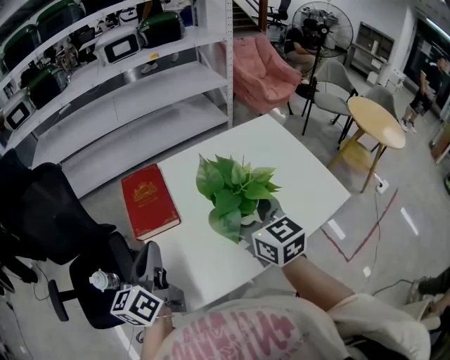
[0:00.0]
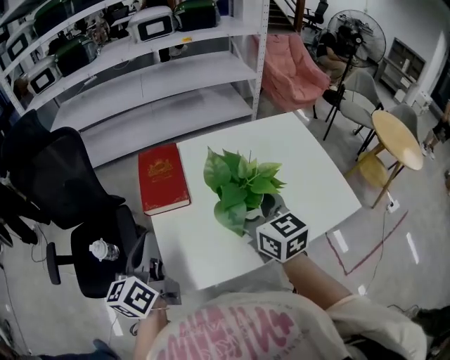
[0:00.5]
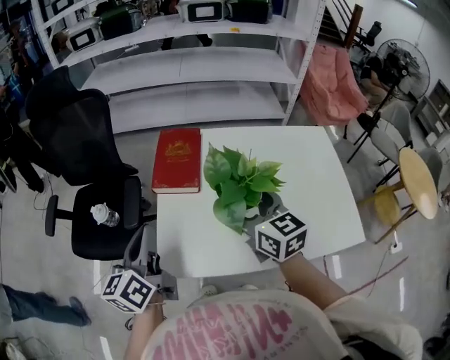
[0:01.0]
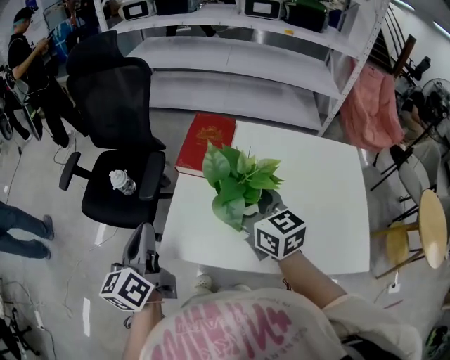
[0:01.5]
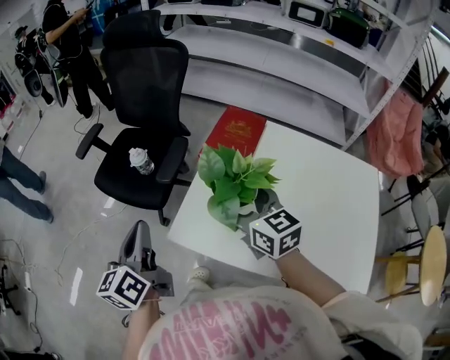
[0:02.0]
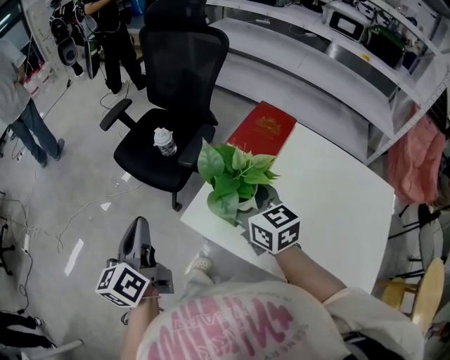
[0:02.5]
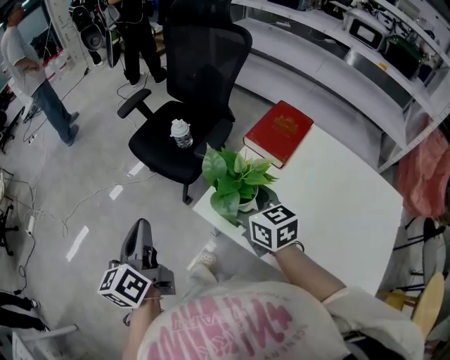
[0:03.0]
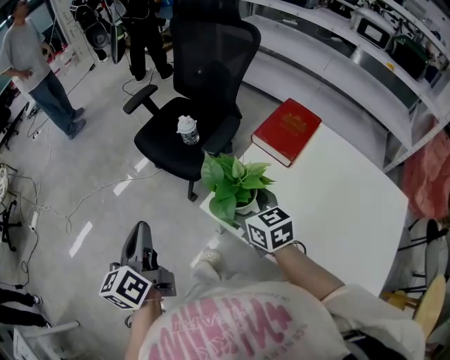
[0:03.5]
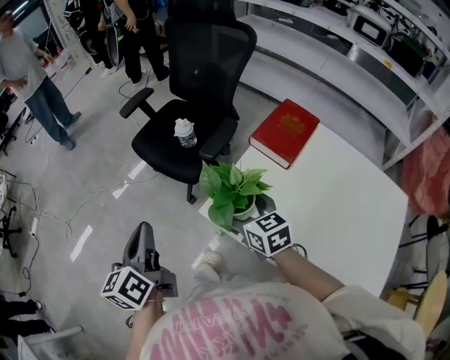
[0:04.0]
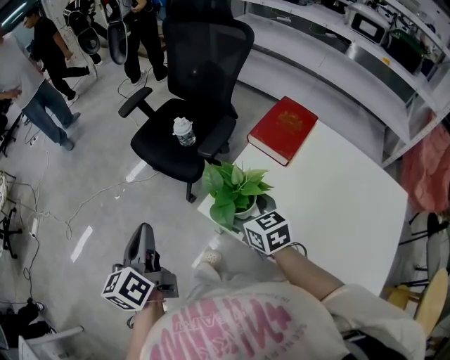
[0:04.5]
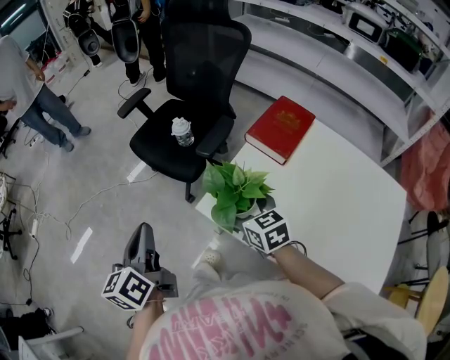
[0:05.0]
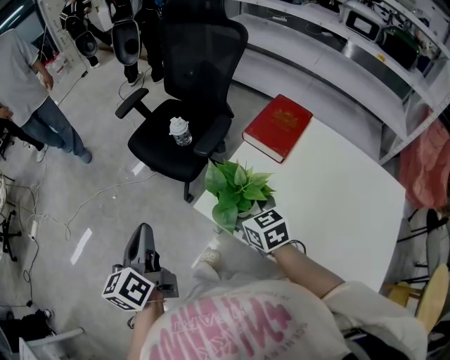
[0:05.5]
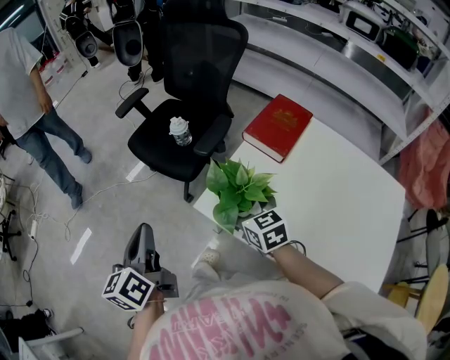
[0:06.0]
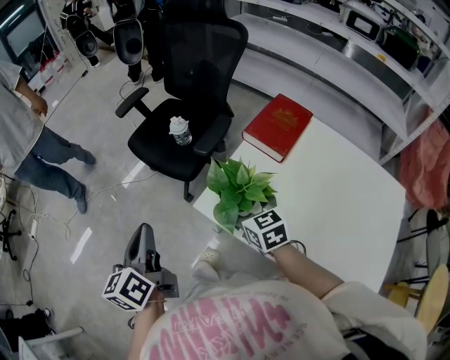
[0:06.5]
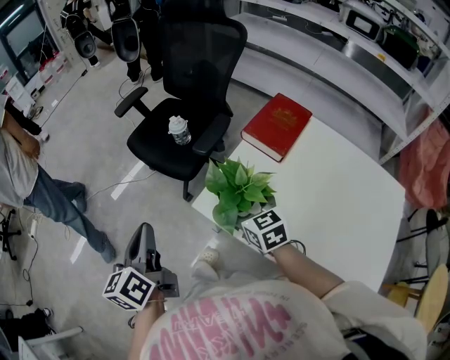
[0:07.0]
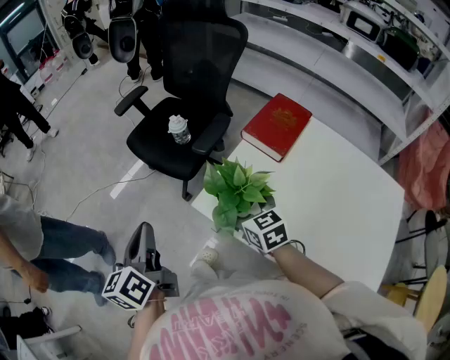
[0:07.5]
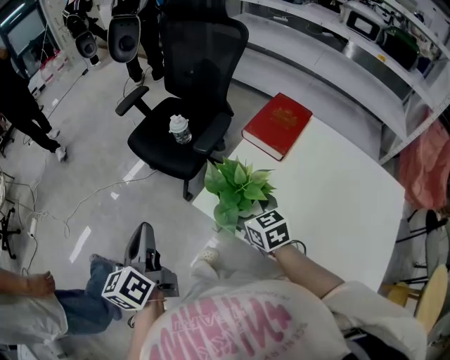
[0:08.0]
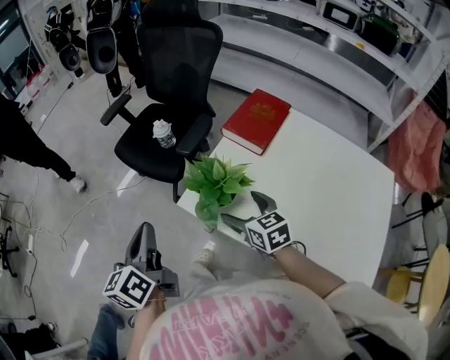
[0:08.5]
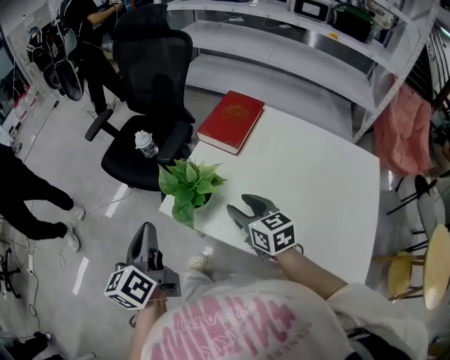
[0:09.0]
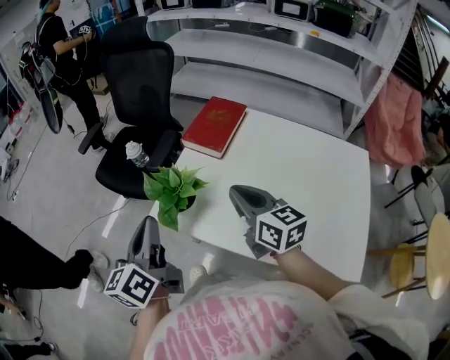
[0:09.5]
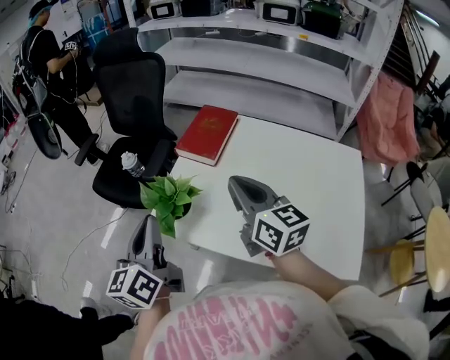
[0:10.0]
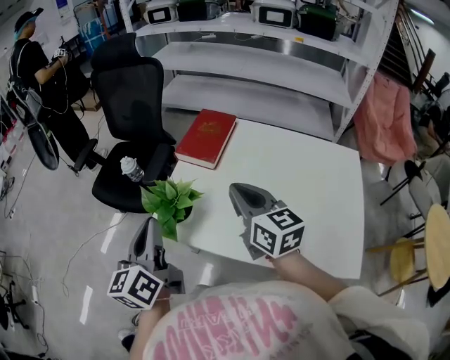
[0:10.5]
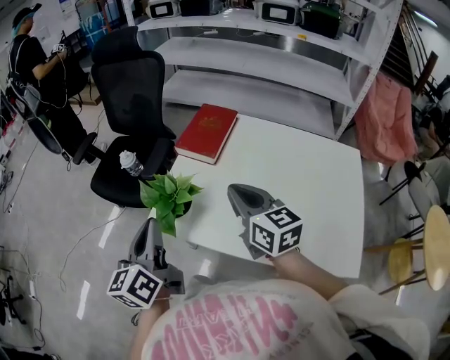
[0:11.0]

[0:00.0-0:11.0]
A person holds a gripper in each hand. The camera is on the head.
0:00.0 to 0:02.0: The left gripper shifts by approximately 20 cm, and changes its angle by about 50 degrees, while the right gripper shifts by some 15 cm, and swivels about 50 degrees.
0:02.0 to 0:03.5: The left gripper shifts roughly 15 cm to the left and backward, while the right gripper goes about 15 cm to the left and downward.
0:03.5 to 0:05.5: The grippers move only a little.
0:05.5 to 0:07.5: Both grippers stay put.
0:07.5 to 0:09.0: The left gripper is displaced to the right by some 10 cm. The right gripper goes roughly 10 cm to the right and backward, and closes its fingers.
0:09.0 to 0:11.0: The right gripper moves upward, about 10 cm, and closes up. Meanwhile the left gripper heads to the right, covering approximately 10 cm.

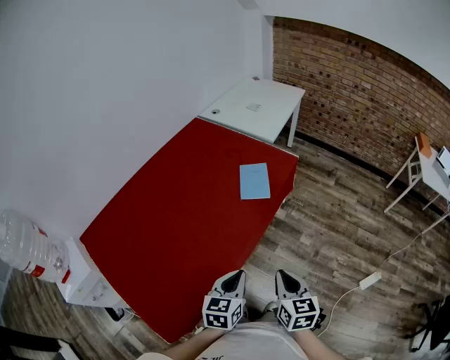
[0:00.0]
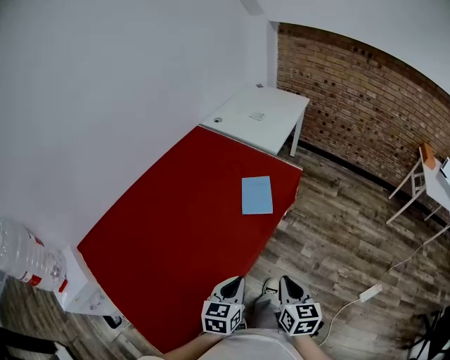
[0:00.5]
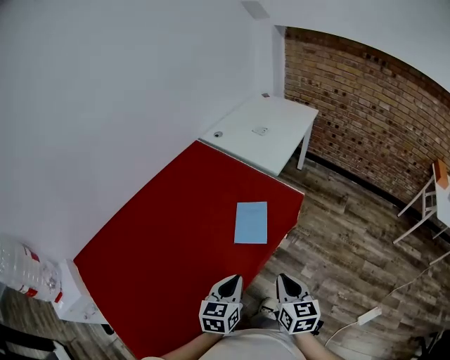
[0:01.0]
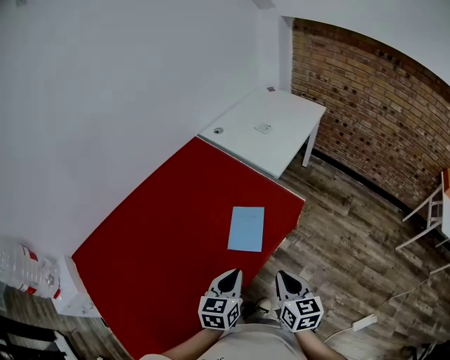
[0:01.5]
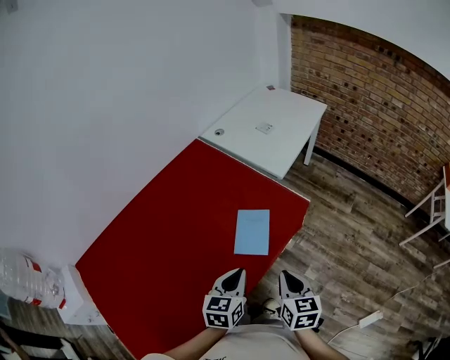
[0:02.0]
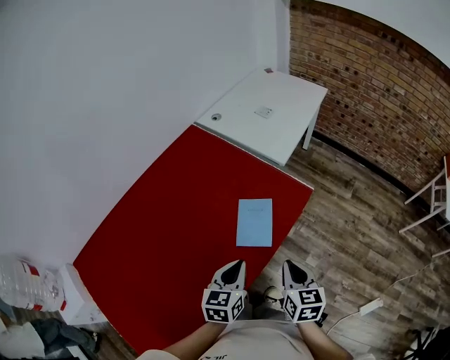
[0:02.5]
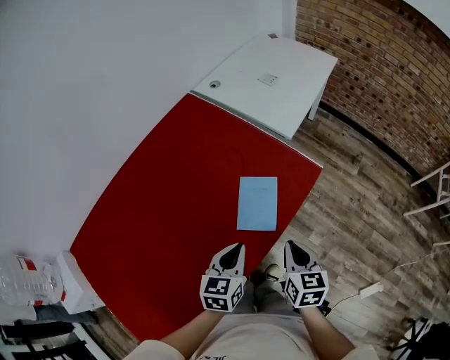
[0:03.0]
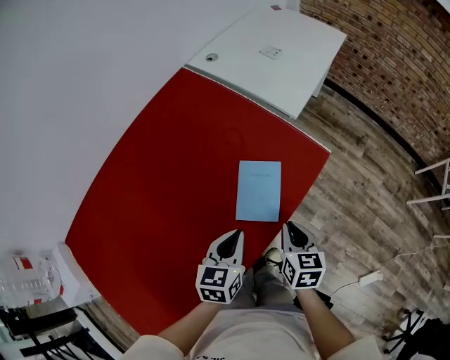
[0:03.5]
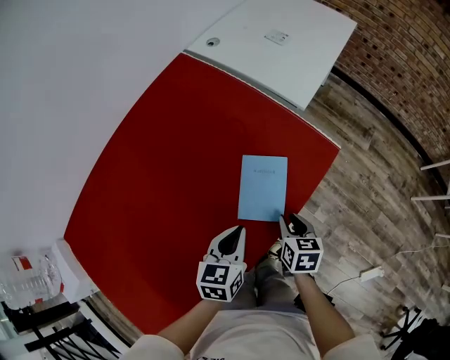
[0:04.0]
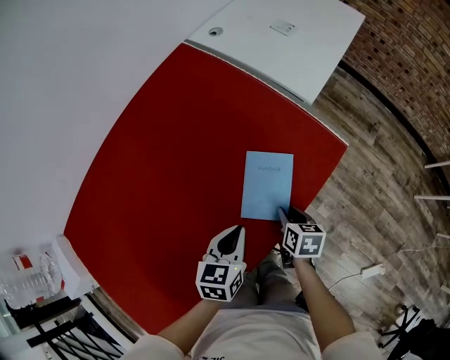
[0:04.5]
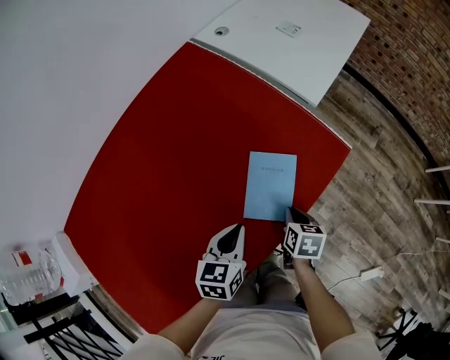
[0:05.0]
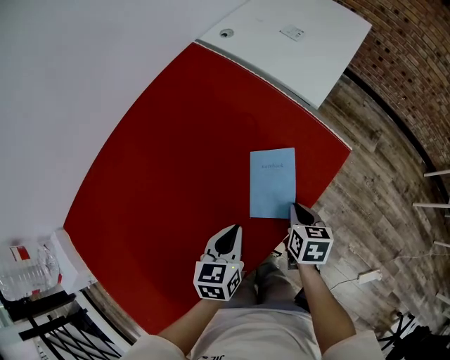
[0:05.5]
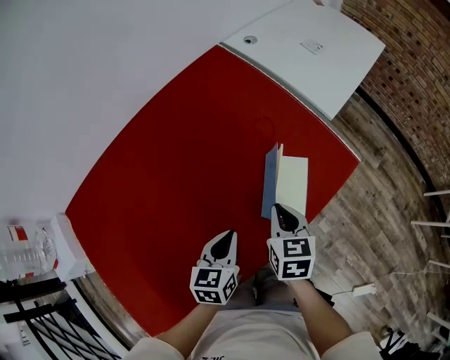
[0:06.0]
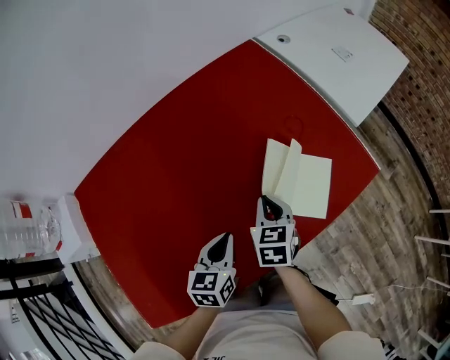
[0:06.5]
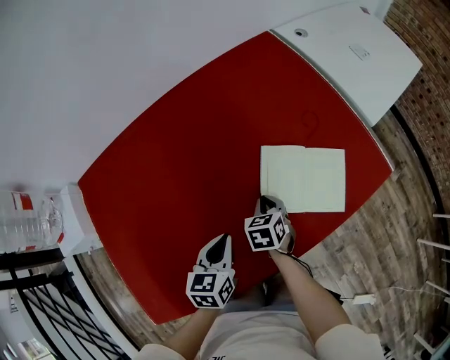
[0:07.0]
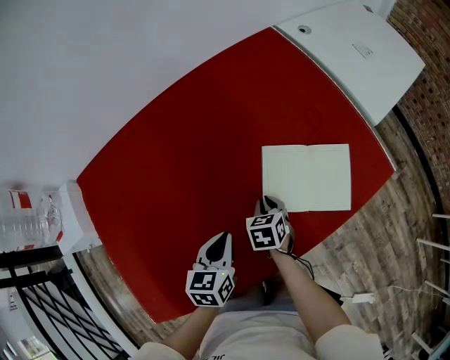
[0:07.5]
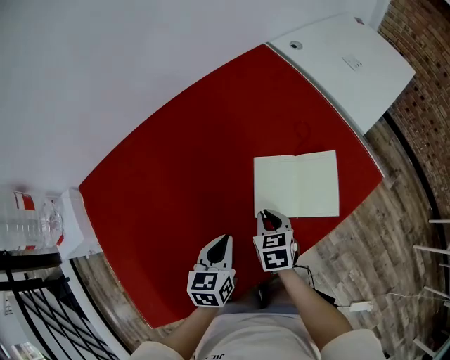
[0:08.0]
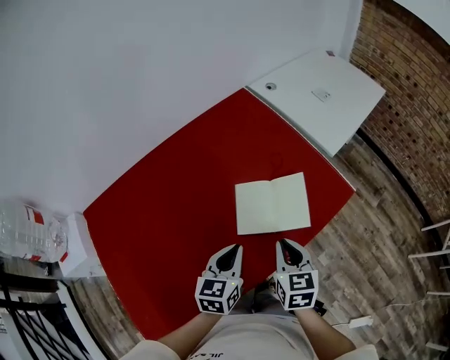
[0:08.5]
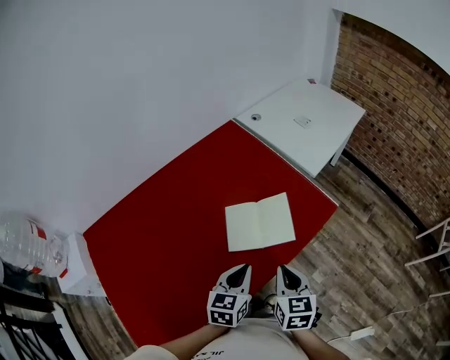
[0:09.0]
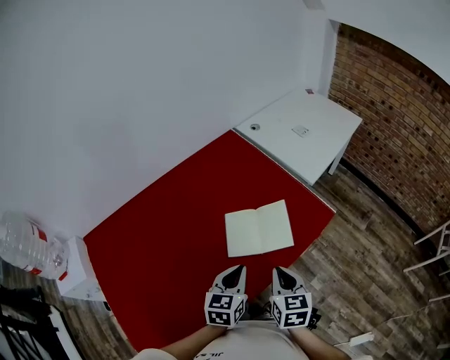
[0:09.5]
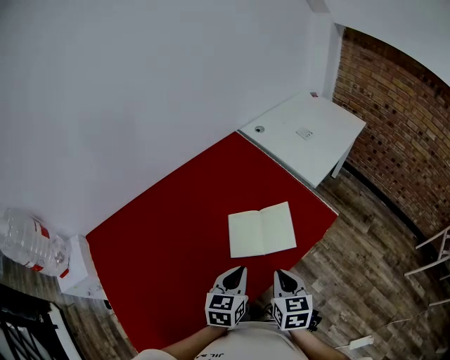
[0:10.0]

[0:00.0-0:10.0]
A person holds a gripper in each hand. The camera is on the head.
0:00.0 to 0:02.0: Both grippers move forward, some 30 cm.
0:02.0 to 0:04.0: The right gripper moves downward and forward, roughly 25 cm, and turns by some 20 degrees. The left gripper travels downward and forward by approximately 15 cm.
0:04.0 to 0:06.0: The left gripper goes about 10 cm to the left, while the right gripper shifts some 15 cm to the left and upward.
0:06.0 to 0:08.0: The right gripper shifts roughly 15 cm to the left and downward, while the left gripper moves to the left, roughly 10 cm.
0:08.0 to 0:10.0: The right gripper moves upward, to the right and backward, about 25 cm, and rotates roughly 20 degrees. The left gripper travels to the right and upward by approximately 20 cm.

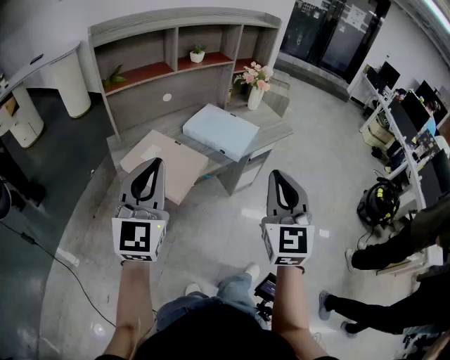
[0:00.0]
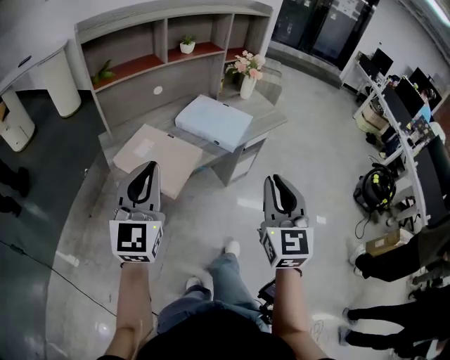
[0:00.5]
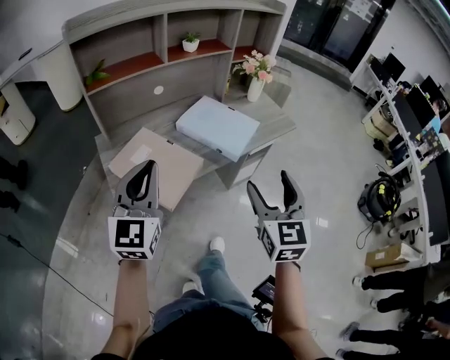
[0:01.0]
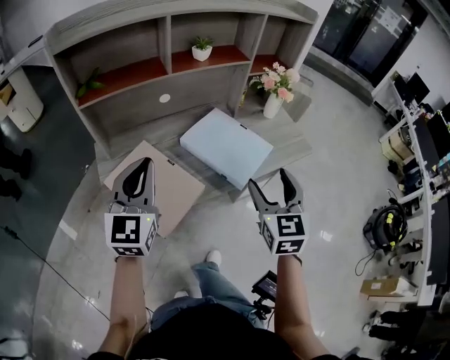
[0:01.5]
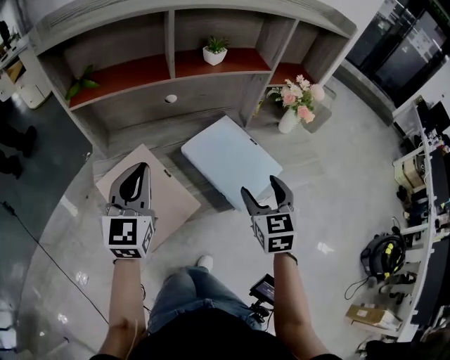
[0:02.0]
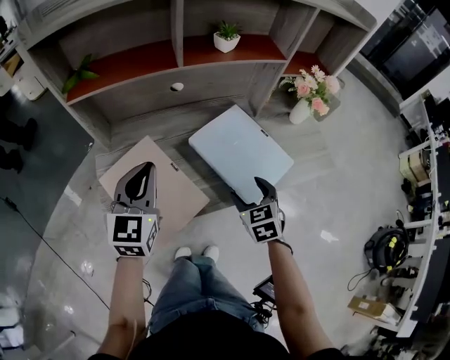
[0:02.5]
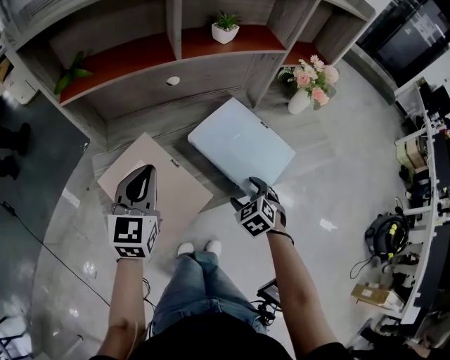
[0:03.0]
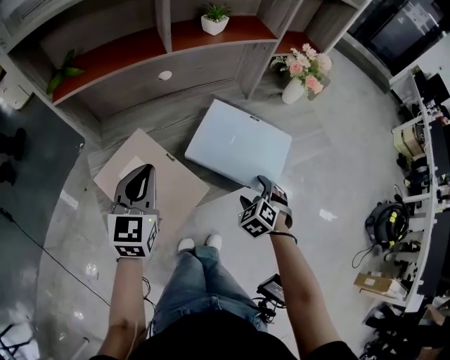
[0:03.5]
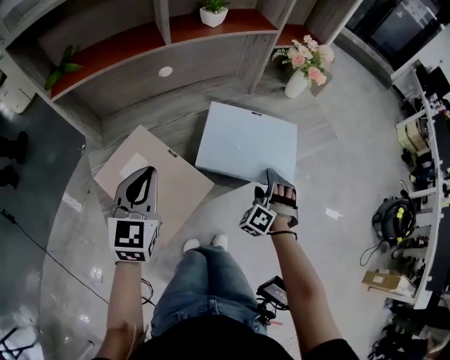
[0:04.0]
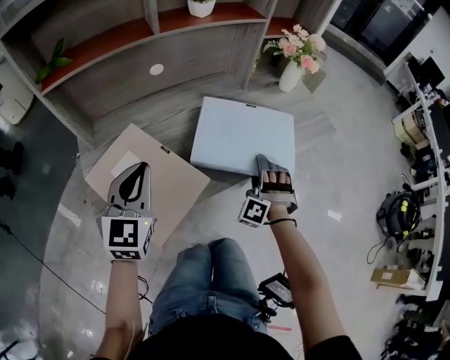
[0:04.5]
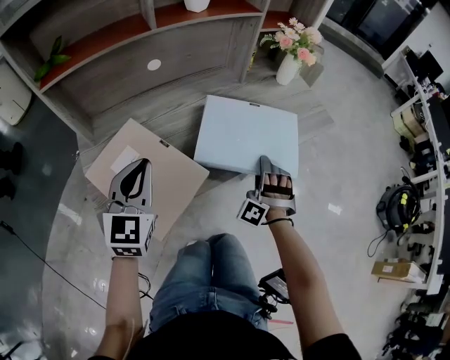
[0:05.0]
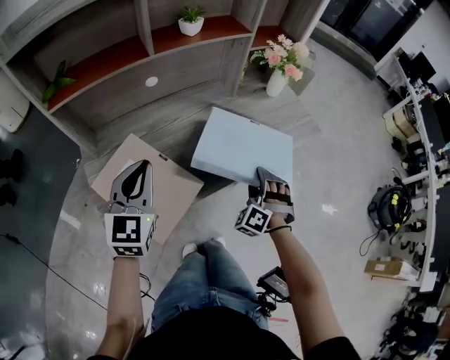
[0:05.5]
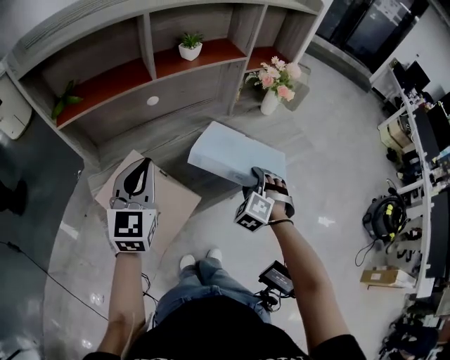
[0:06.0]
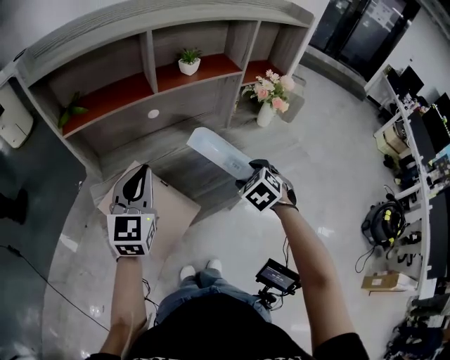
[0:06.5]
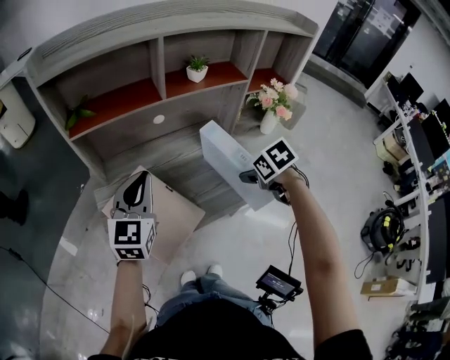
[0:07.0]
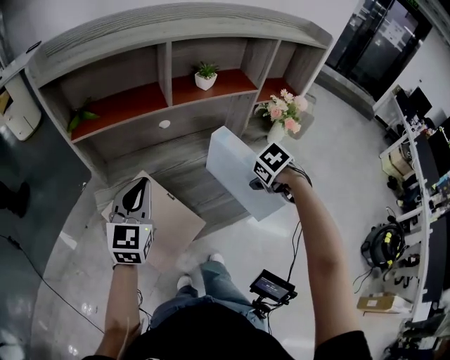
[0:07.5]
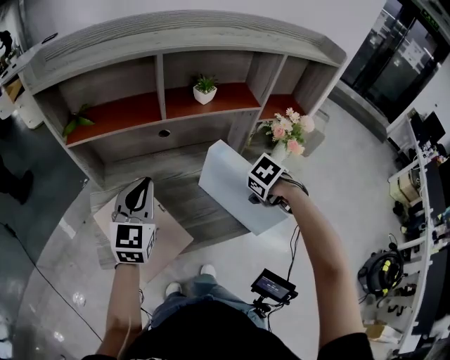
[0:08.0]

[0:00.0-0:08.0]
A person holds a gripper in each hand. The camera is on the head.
0:00.0 to 0:02.0: The left gripper goes roughly 30 cm forward, and swivels some 30 degrees; the right gripper shifts approximately 40 cm forward and downward, rotates some 30 degrees, and opens its fingers.
0:02.0 to 0:04.0: The right gripper goes roughly 20 cm downward, and rolls counterclockwise, seen from behind, by about 50 degrees, while the left gripper goes some 10 cm downward.
0:04.0 to 0:06.0: Both grippers travel together upward, some 10 cm.
0:06.0 to 0:08.0: The right gripper moves about 15 cm, and tips its fingers downward by approximately 40 degrees; the left gripper moves approximately 5 cm.
